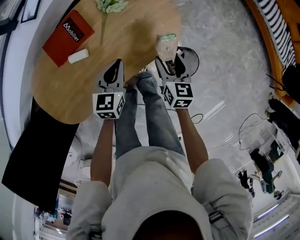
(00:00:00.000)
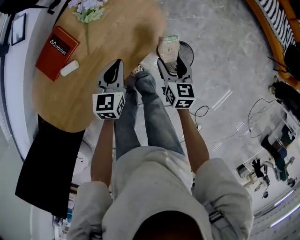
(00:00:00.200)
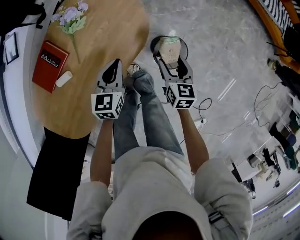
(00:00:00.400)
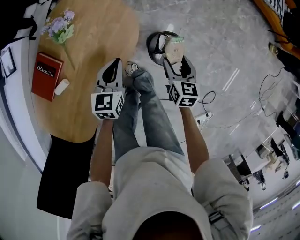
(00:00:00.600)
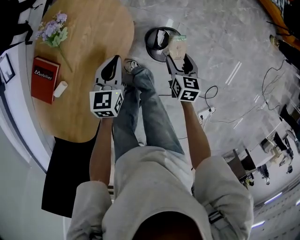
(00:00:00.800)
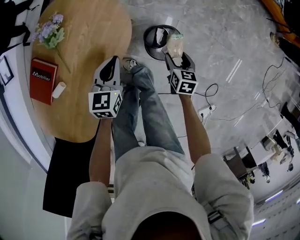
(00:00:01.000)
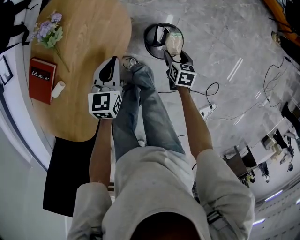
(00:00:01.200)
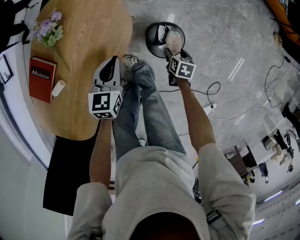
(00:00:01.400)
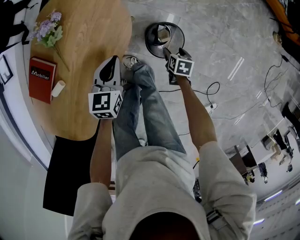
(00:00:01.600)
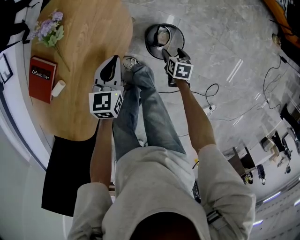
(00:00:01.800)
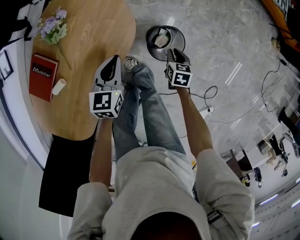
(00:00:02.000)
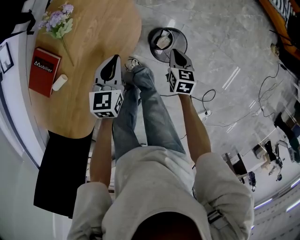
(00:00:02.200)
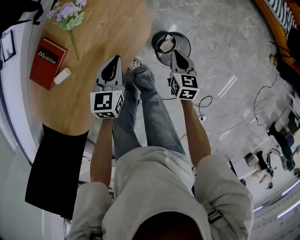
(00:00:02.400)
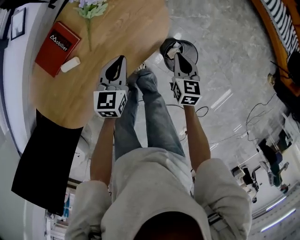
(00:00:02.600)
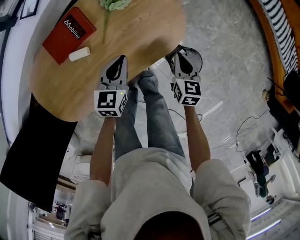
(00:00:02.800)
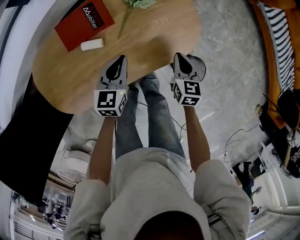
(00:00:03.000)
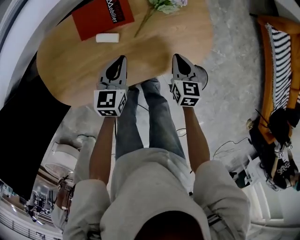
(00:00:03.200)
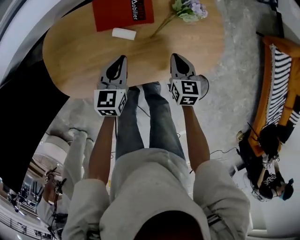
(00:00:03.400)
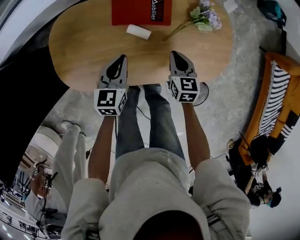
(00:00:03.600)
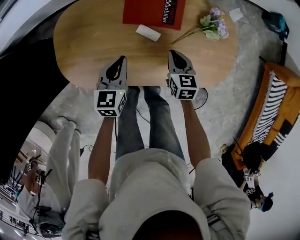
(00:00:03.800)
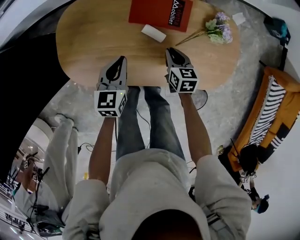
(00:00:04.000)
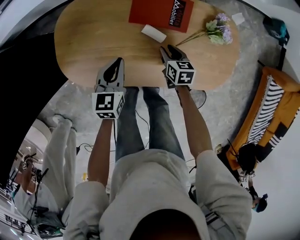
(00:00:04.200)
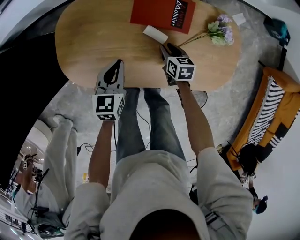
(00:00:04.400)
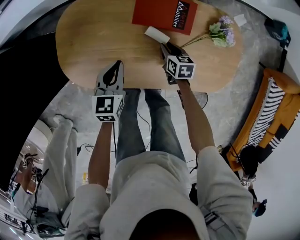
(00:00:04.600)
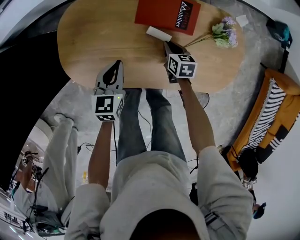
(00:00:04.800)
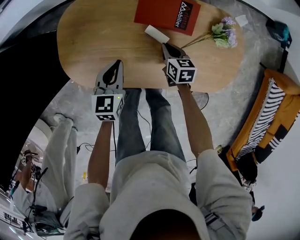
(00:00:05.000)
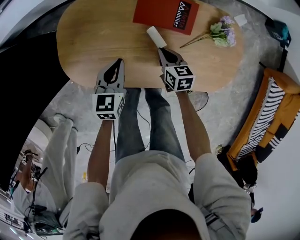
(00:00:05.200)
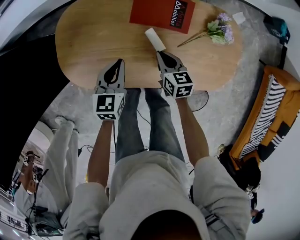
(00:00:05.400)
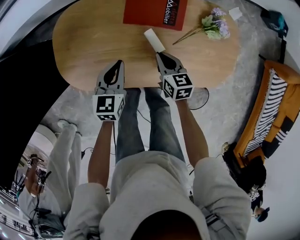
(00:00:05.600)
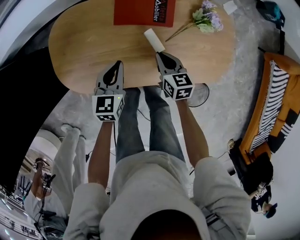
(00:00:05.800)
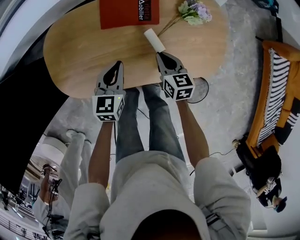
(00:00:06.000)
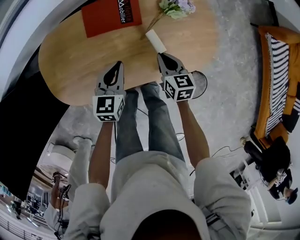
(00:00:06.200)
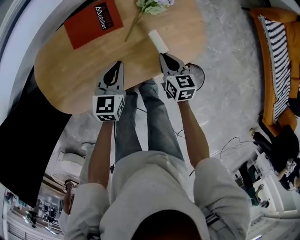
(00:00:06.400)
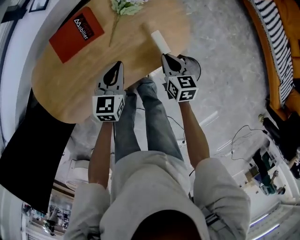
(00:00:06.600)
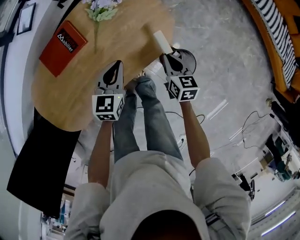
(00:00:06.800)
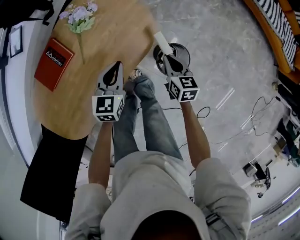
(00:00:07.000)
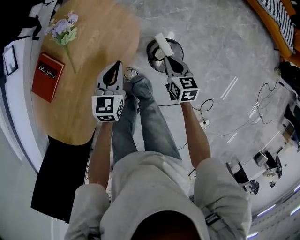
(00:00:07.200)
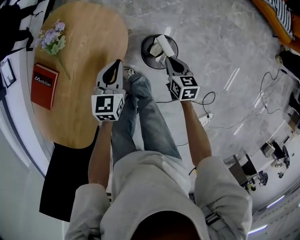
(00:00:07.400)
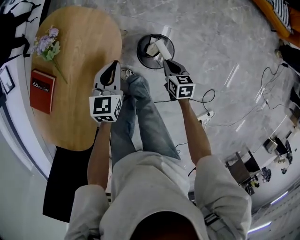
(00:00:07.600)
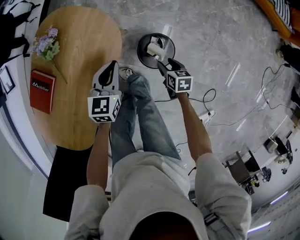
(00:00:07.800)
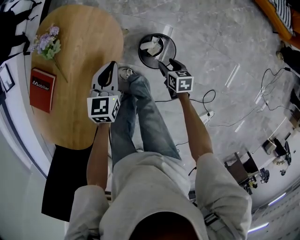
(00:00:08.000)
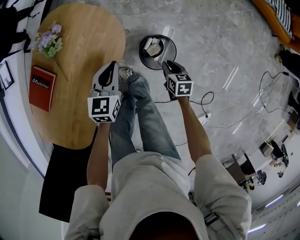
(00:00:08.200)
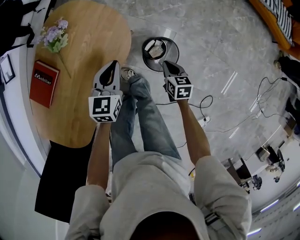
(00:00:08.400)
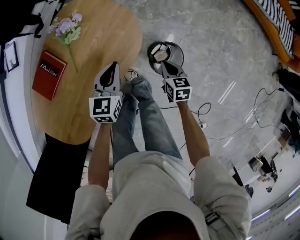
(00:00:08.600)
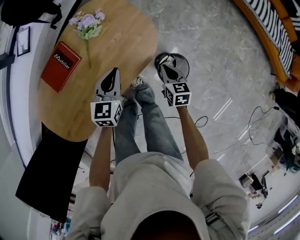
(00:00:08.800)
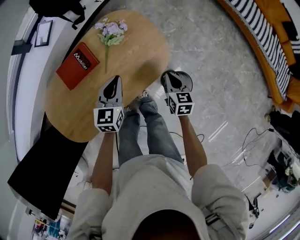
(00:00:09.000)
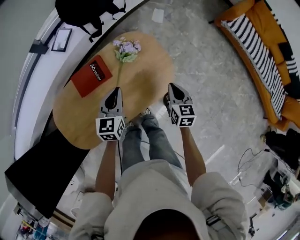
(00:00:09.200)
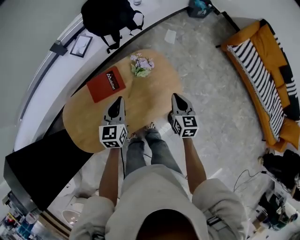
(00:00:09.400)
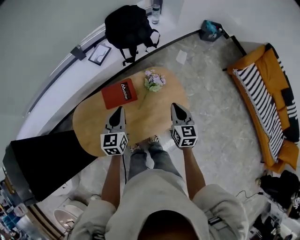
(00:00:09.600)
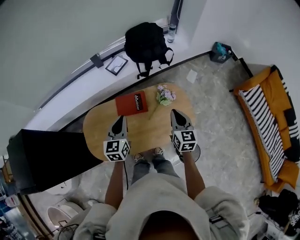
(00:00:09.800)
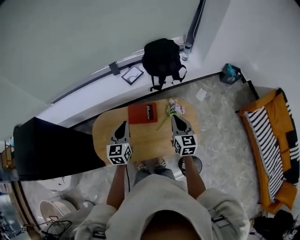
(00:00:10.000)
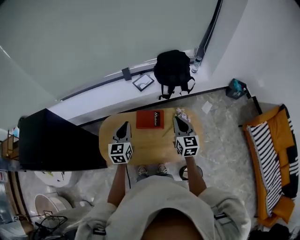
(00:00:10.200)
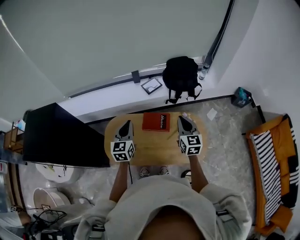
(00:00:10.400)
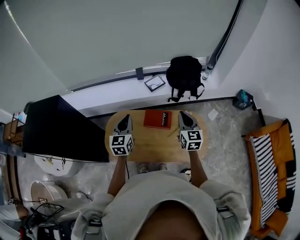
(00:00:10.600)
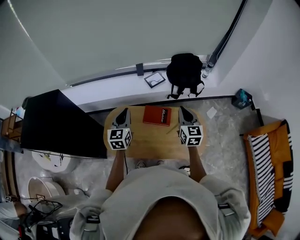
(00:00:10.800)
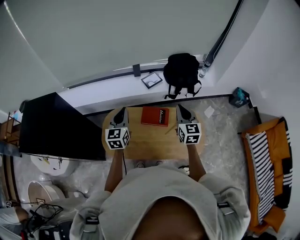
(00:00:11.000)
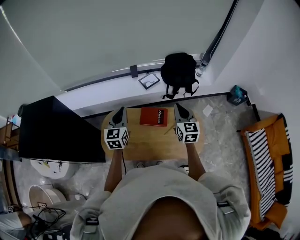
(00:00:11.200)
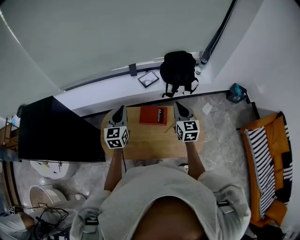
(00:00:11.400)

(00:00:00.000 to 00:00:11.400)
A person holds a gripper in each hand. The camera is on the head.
00:00:00.000 - 00:00:01.400: The right gripper ends up approximately 30 cm from where it was, and swivels roughly 50 degrees. The left gripper shifts by some 15 cm, and changes its angle by approximately 20 degrees.
00:00:01.400 - 00:00:02.800: The left gripper ends up approximately 15 cm from where it was, and swivels some 30 degrees. Meanwhile the right gripper changes place by about 30 cm, swivels roughly 50 degrees, and closes.
00:00:02.800 - 00:00:04.200: The left gripper shifts by approximately 30 cm, and turns by roughly 40 degrees; the right gripper ends up roughly 35 cm from where it was, changes its angle by roughly 50 degrees, and opens its fingers.
00:00:04.200 - 00:00:05.600: The right gripper travels upward by roughly 5 cm, and closes its fingers.
00:00:05.600 - 00:00:07.200: The two grippers travel together, roughly 40 cm. The right gripper turns by some 60 degrees. Meanwhile the left gripper turns by roughly 60 degrees.
00:00:07.200 - 00:00:08.600: The right gripper goes downward and returns, approximately 10 cm each way, and opens and closes again. Meanwhile the left gripper travels to the right and back again, about 5 cm each way.
00:00:08.600 - 00:00:10.000: The right gripper goes approximately 40 cm upward, and points its fingers some 40 degrees further upward; the left gripper shifts by some 50 cm, and swivels approximately 60 degrees.
00:00:10.000 - 00:00:11.400: The left gripper moves to the left and upward, some 15 cm. Meanwhile the right gripper is displaced upward, to the left and forward by about 15 cm.

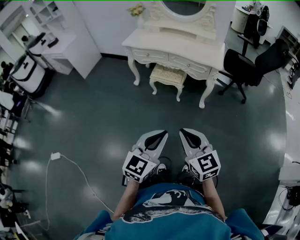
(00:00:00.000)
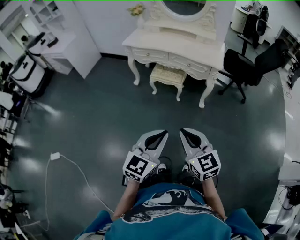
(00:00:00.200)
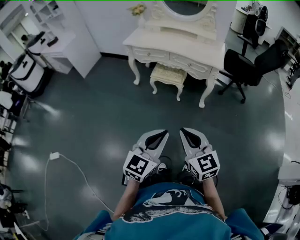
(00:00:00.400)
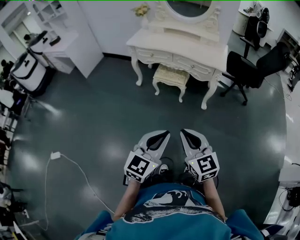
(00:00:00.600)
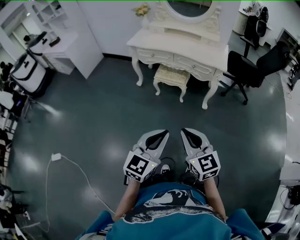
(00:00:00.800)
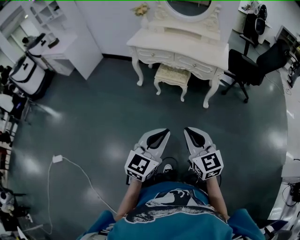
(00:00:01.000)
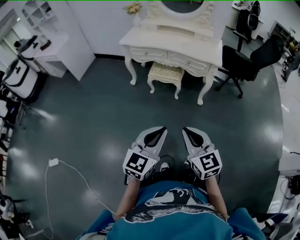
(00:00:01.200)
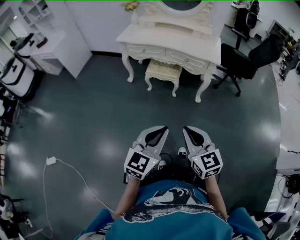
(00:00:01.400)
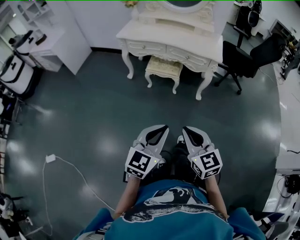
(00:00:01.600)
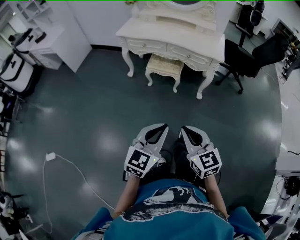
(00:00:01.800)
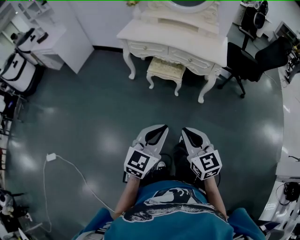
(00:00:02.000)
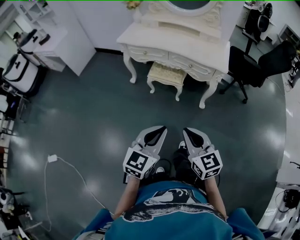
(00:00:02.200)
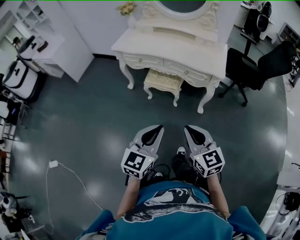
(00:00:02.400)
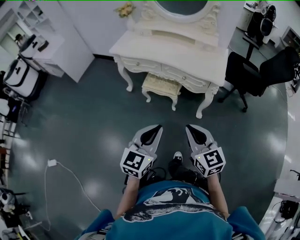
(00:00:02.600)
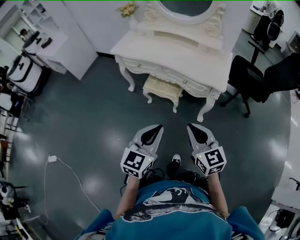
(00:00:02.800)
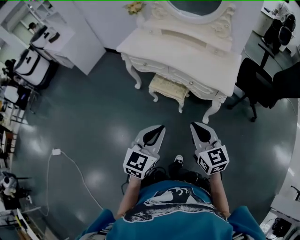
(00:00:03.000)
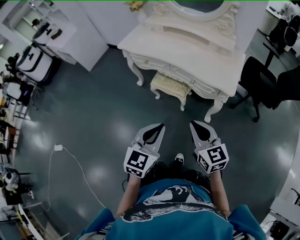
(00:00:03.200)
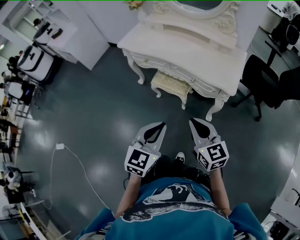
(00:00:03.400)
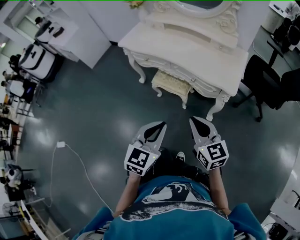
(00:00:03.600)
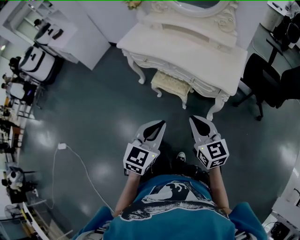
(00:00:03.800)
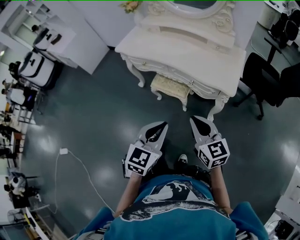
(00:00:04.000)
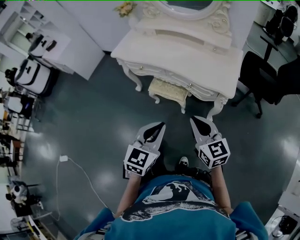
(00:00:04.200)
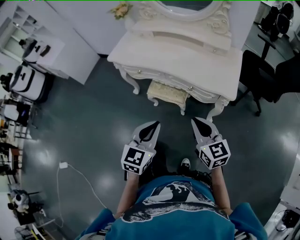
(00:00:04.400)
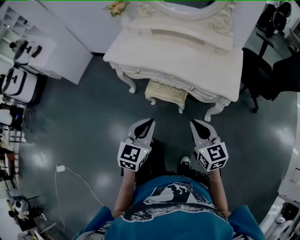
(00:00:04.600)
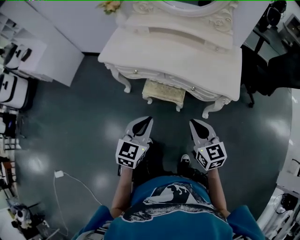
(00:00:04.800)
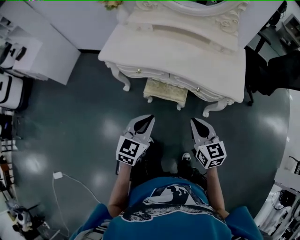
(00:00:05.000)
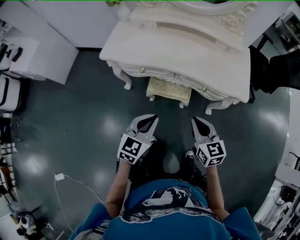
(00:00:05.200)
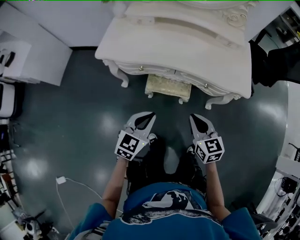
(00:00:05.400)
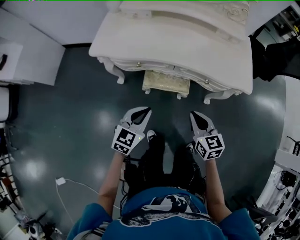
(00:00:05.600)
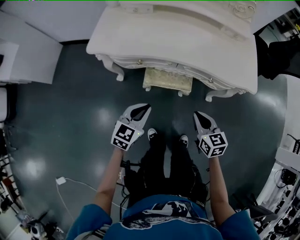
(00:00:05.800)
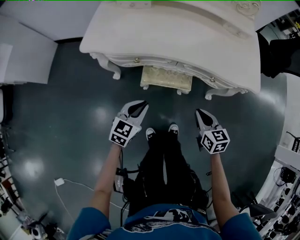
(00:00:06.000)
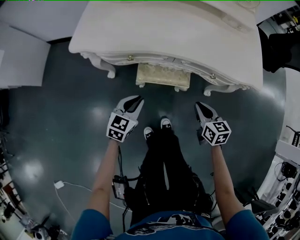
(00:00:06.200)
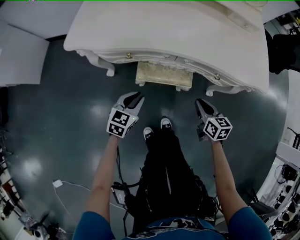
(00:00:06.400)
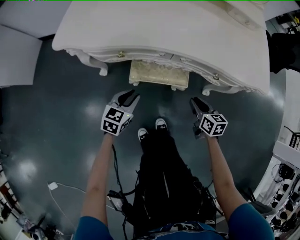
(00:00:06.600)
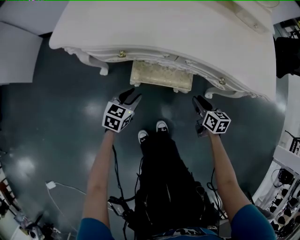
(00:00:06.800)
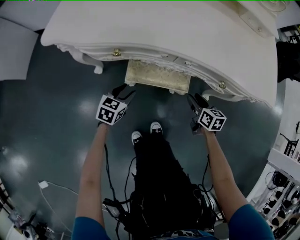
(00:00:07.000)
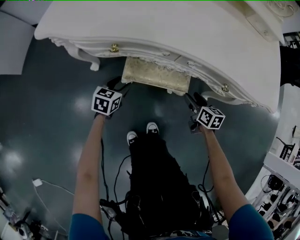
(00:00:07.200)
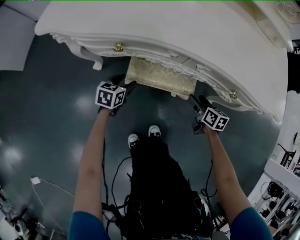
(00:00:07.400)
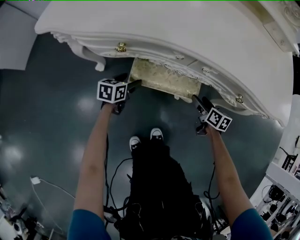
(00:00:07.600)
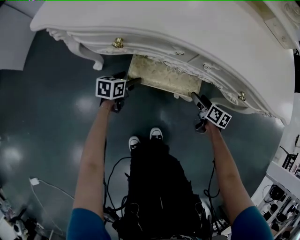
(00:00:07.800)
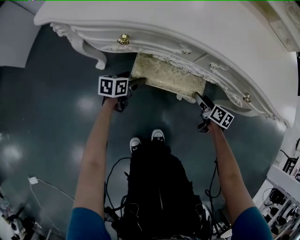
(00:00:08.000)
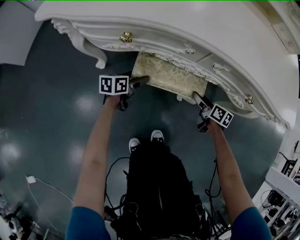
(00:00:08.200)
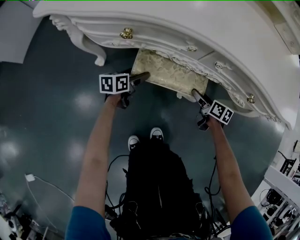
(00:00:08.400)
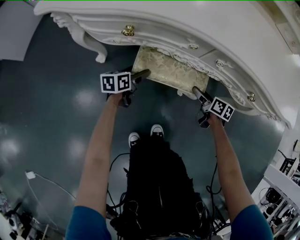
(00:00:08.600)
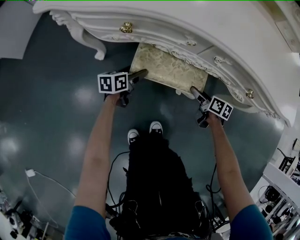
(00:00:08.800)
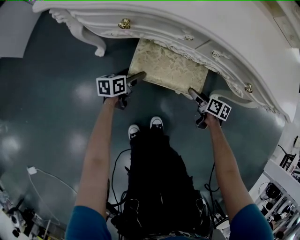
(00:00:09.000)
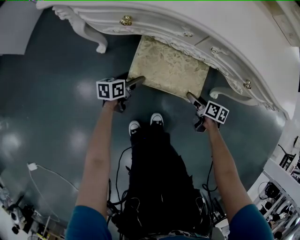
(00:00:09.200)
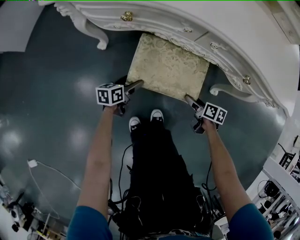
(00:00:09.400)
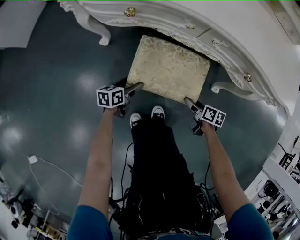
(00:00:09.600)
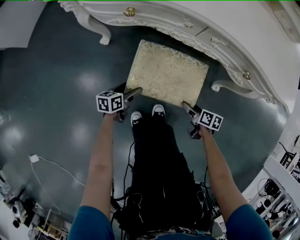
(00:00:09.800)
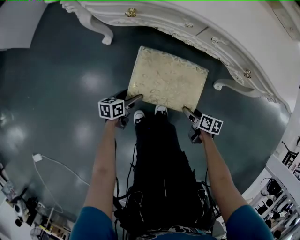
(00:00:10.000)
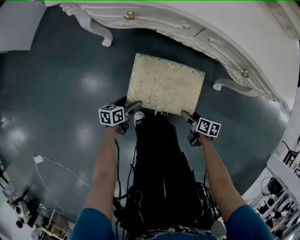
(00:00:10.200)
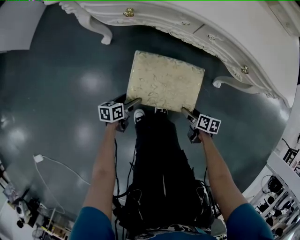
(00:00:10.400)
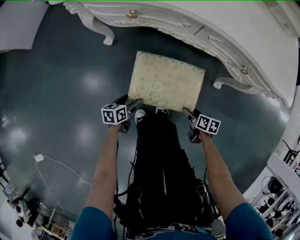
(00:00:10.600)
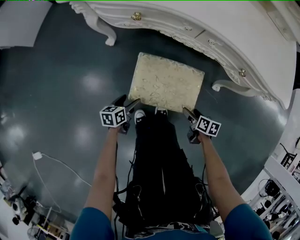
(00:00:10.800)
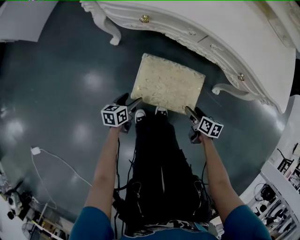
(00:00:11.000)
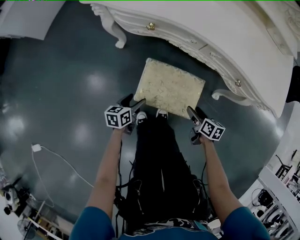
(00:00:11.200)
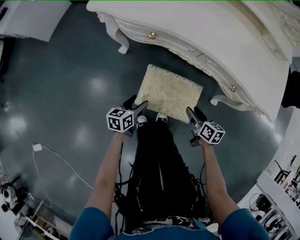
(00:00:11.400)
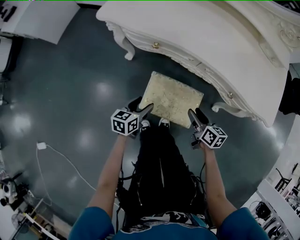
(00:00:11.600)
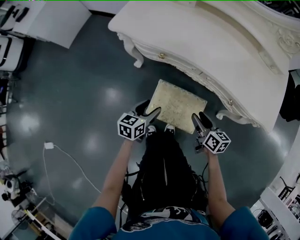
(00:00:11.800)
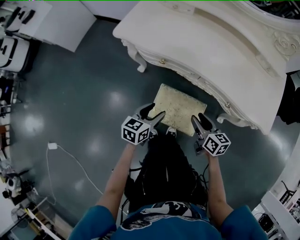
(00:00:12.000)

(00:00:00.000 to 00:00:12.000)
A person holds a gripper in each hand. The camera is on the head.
00:00:00.000 - 00:00:01.600: The left gripper moves some 5 cm.
00:00:01.600 - 00:00:03.000: The two grippers go some 30 cm forward and to the right.
00:00:03.000 - 00:00:04.400: Both grippers move forward, roughly 10 cm.
00:00:04.400 - 00:00:06.000: The right gripper goes some 25 cm downward, to the left and forward, and turns by approximately 30 degrees; the left gripper goes about 35 cm to the left, downward and forward, and turns by about 30 degrees.
00:00:06.000 - 00:00:07.600: Both grippers travel together downward and forward, approximately 35 cm. The left gripper changes its angle by some 30 degrees, and opens its fingers. The right gripper rotates some 30 degrees, and opens its fingers.
00:00:07.600 - 00:00:09.000: The left gripper moves about 5 cm. Meanwhile the right gripper moves about 5 cm.
00:00:09.000 - 00:00:10.400: The grippers both shift backward by about 20 cm.
00:00:10.400 - 00:00:12.000: The grippers both shift upward by approximately 35 cm. The right gripper changes its angle by about 40 degrees, and closes; the left gripper rotates roughly 30 degrees.
